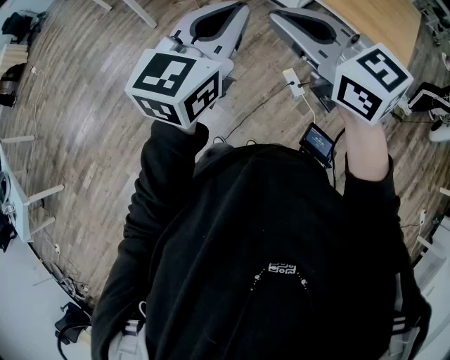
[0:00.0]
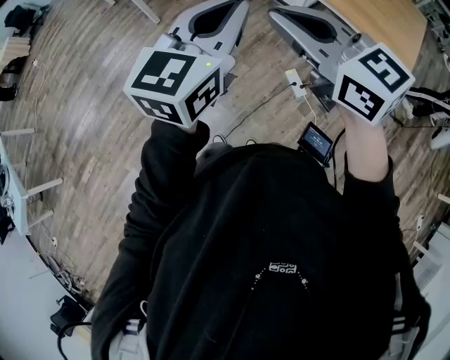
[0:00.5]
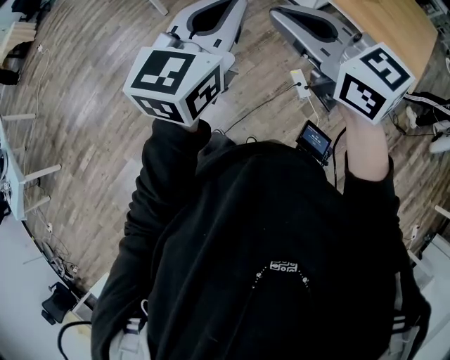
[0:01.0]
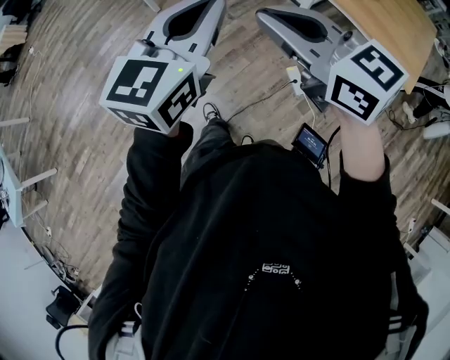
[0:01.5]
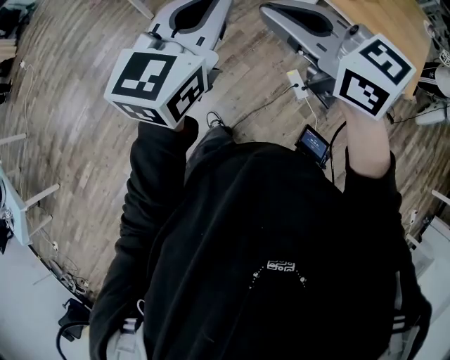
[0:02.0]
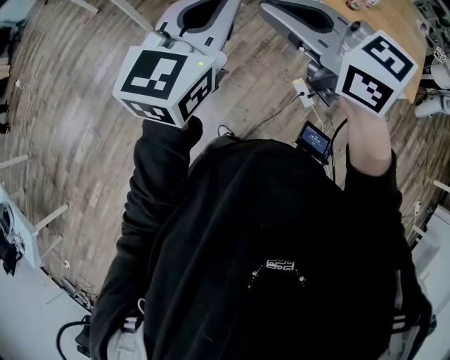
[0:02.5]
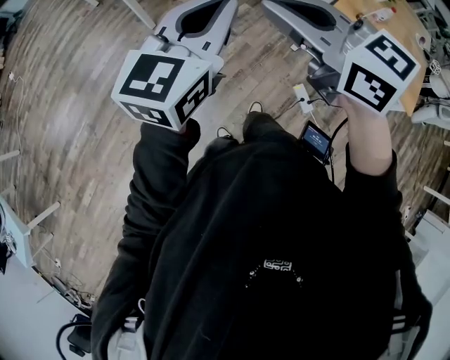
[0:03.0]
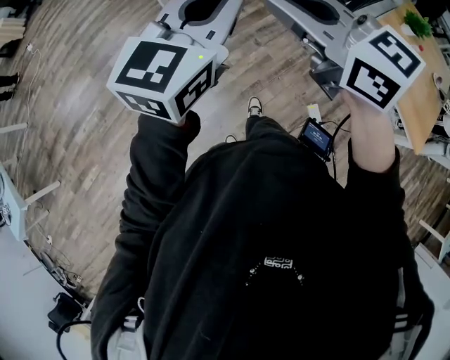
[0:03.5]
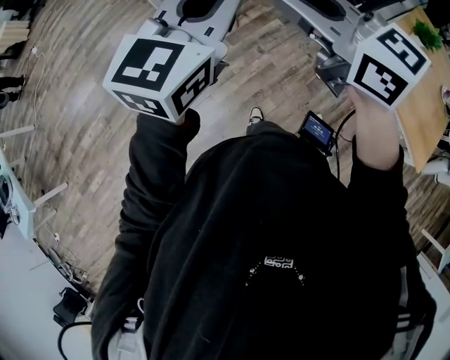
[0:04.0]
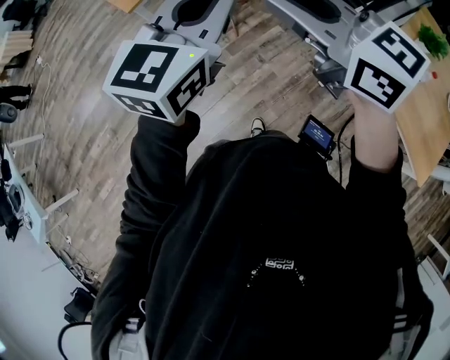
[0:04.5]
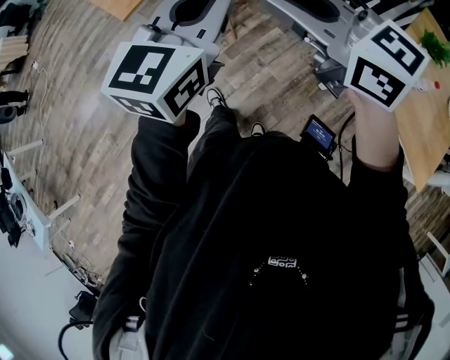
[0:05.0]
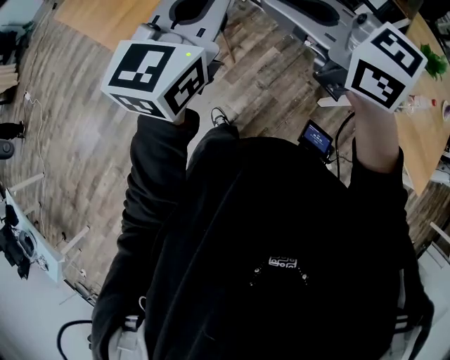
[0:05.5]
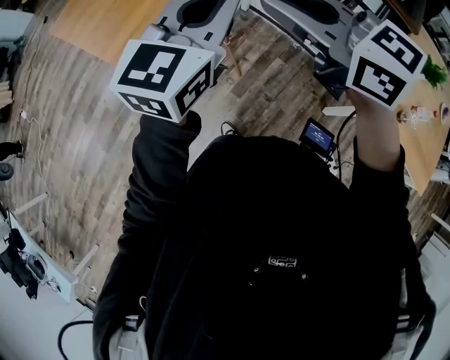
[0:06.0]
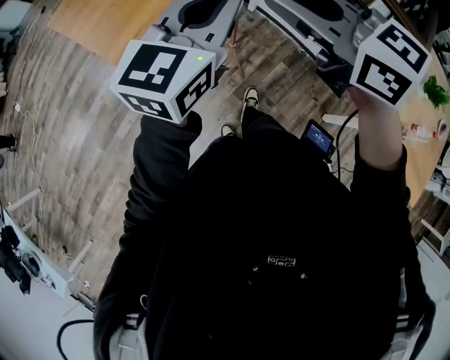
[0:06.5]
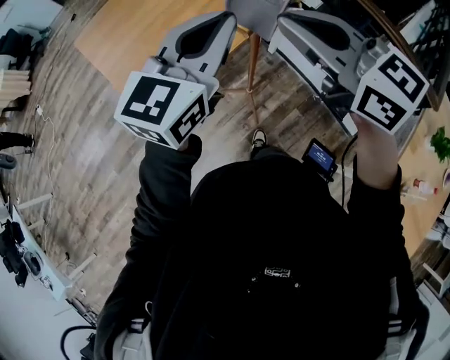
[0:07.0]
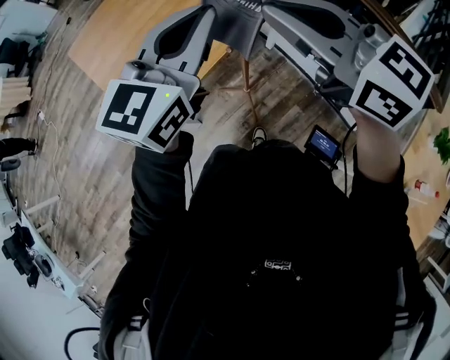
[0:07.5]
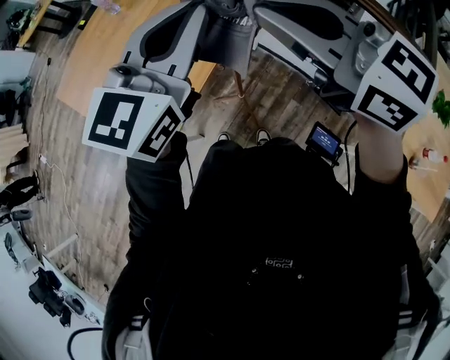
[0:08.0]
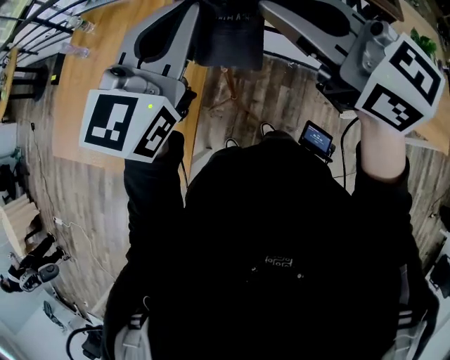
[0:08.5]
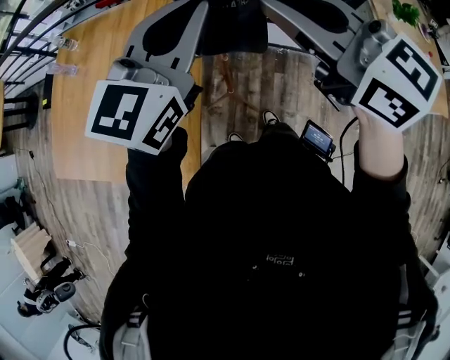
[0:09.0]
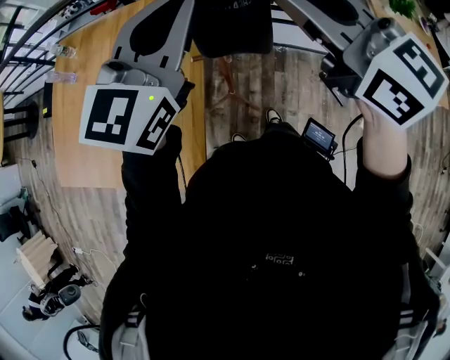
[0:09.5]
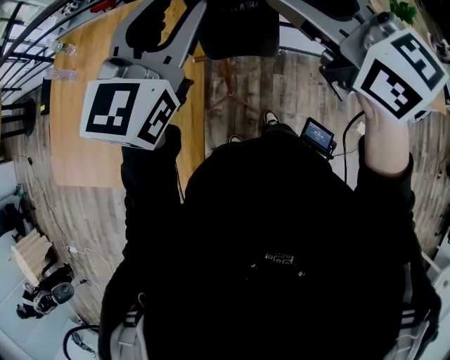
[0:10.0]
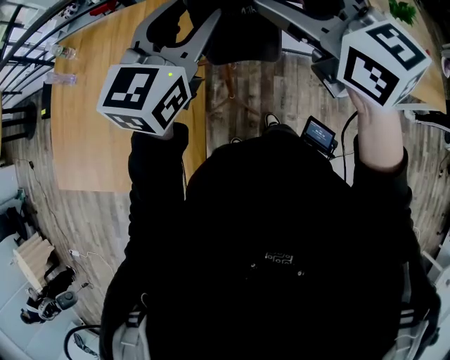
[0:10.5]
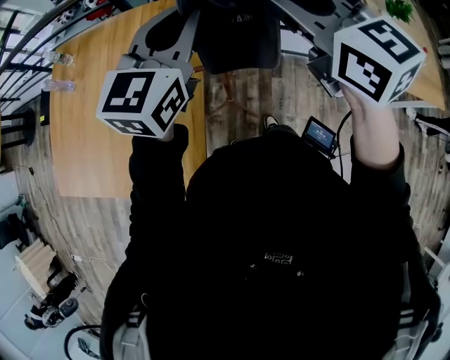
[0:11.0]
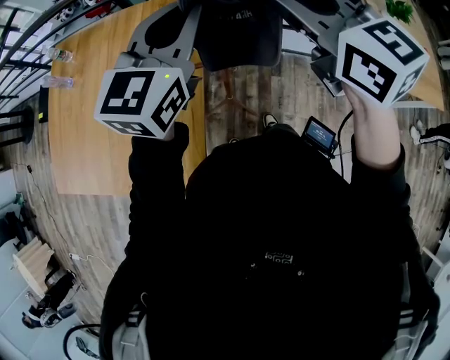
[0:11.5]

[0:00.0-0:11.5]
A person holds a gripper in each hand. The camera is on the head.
0:00.0 to 0:02.0: The left gripper moves forward and to the left, some 15 cm; the right gripper goes about 15 cm forward.
0:02.0 to 0:04.0: The grippers both shift forward by roughly 30 cm.
0:04.0 to 0:06.0: Both grippers move forward, roughly 40 cm.
0:06.0 to 0:07.5: Both grippers travel together forward, roughly 25 cm.
0:07.5 to 0:09.5: The right gripper changes its angle by roughly 50 degrees, while the left gripper turns by roughly 40 degrees.
0:09.5 to 0:11.5: The left gripper changes place by roughly 5 cm, and opens and closes again. The right gripper opens, then closes once more.

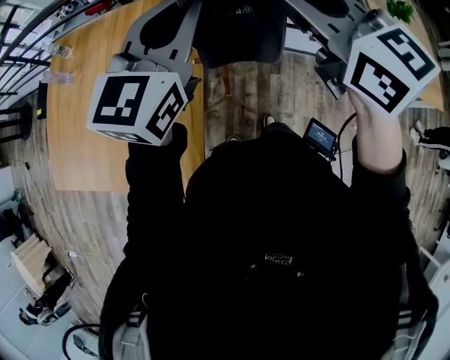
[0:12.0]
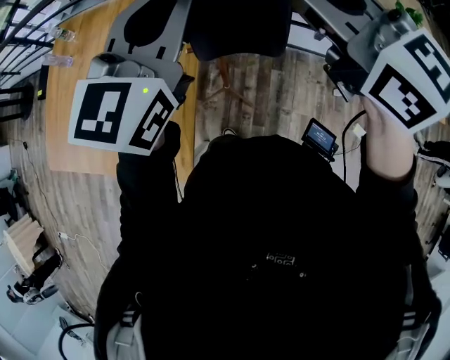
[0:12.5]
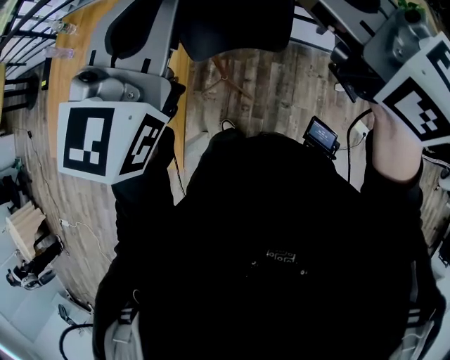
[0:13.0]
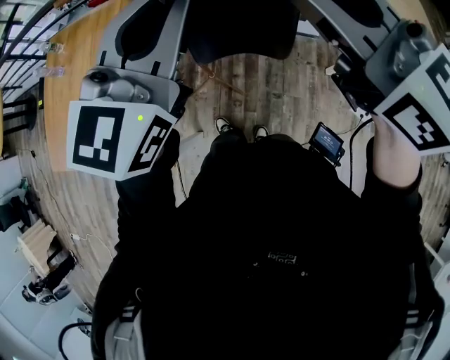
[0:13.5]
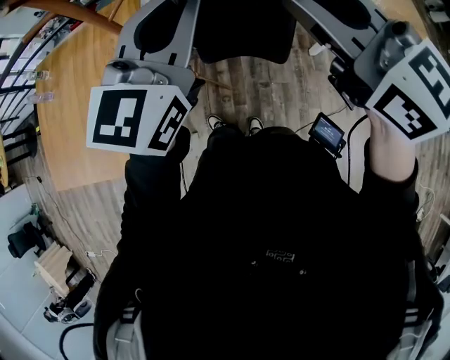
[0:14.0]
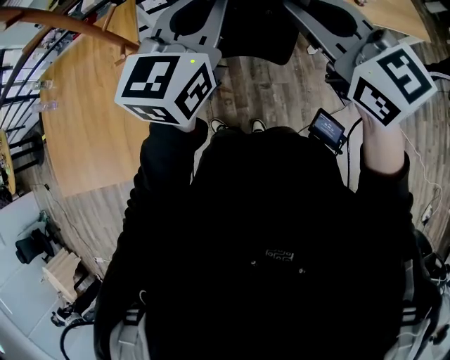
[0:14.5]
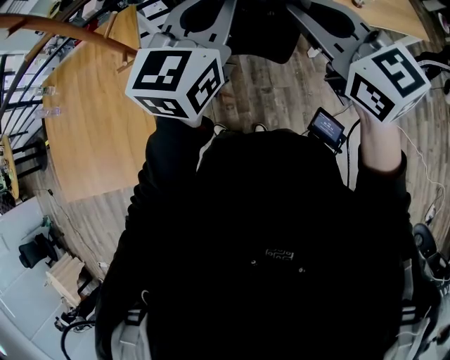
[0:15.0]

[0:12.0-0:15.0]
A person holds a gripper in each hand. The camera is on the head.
0:12.0 to 0:13.5: Both grippers move to the right and backward, about 15 cm.
0:13.5 to 0:15.0: The grippers both shift to the right and downward by some 15 cm.

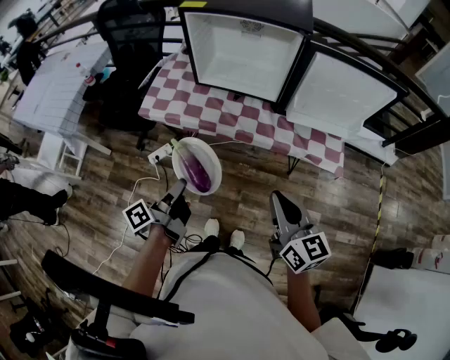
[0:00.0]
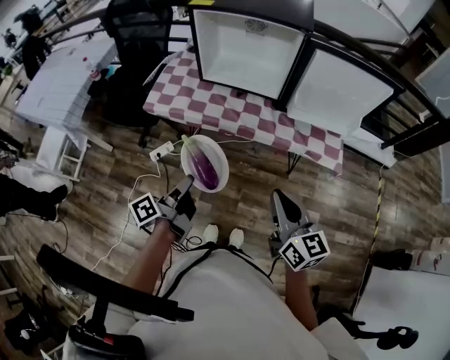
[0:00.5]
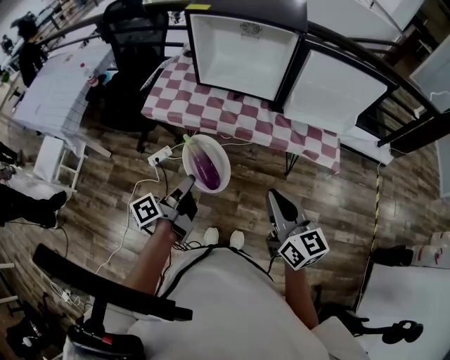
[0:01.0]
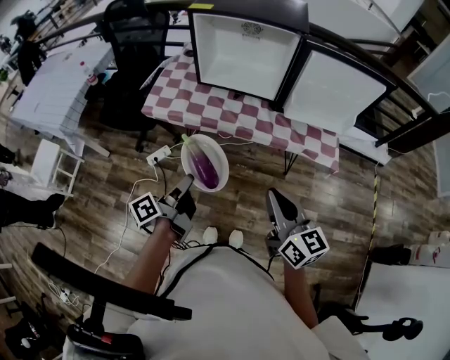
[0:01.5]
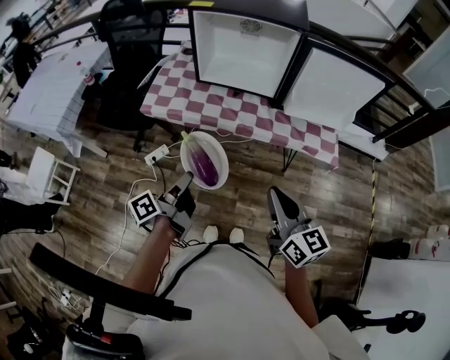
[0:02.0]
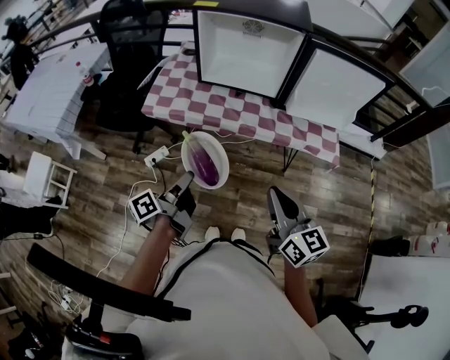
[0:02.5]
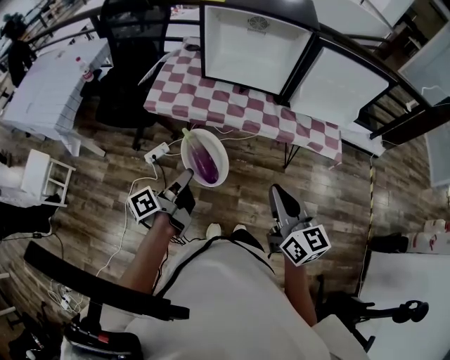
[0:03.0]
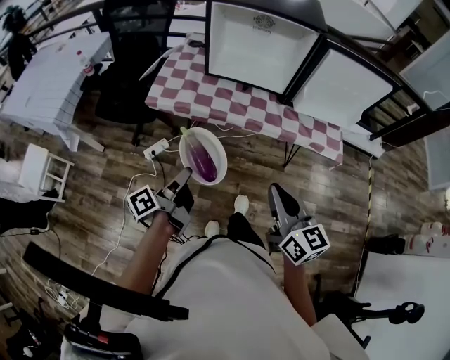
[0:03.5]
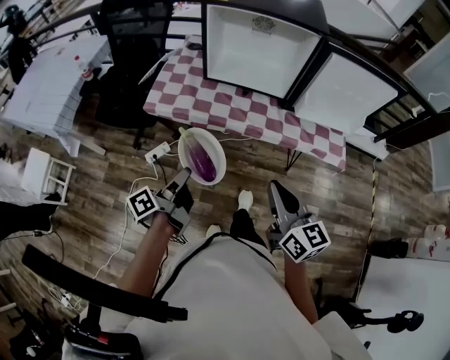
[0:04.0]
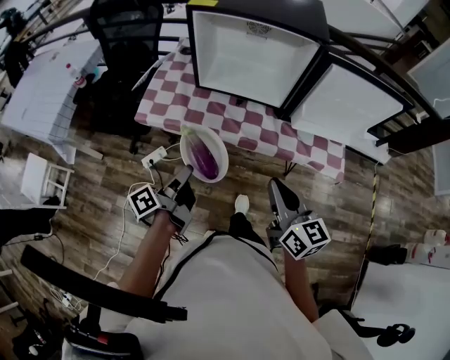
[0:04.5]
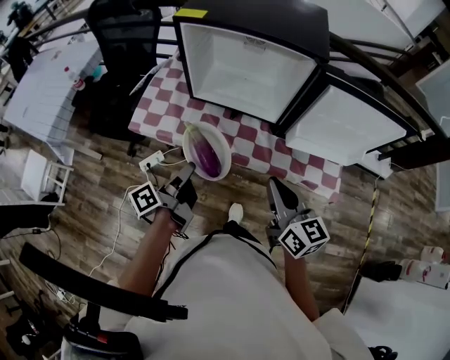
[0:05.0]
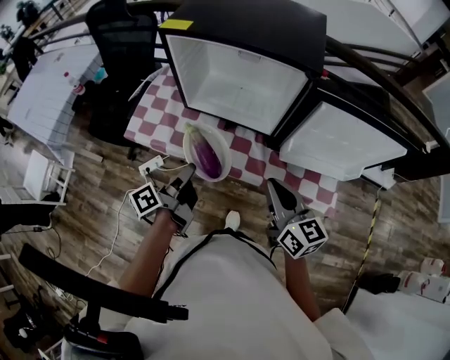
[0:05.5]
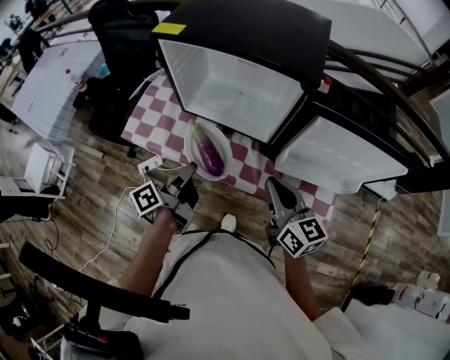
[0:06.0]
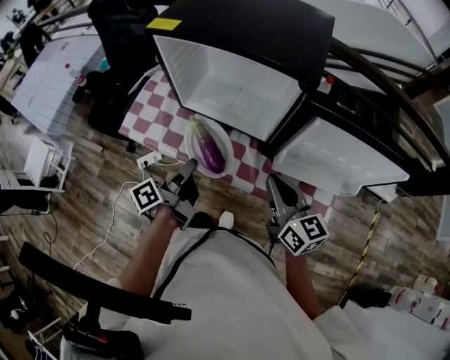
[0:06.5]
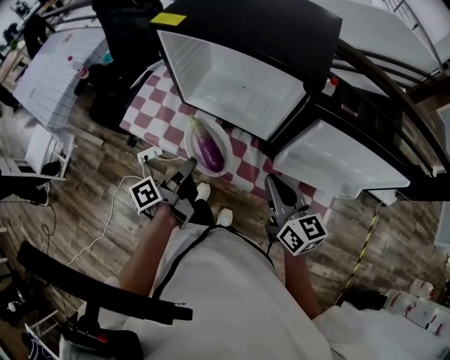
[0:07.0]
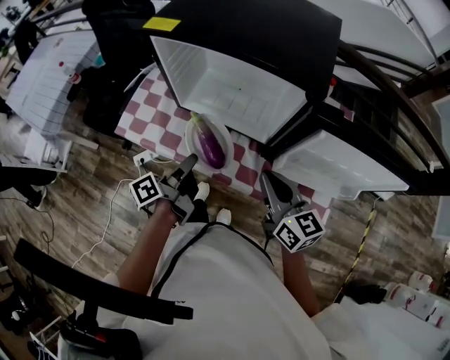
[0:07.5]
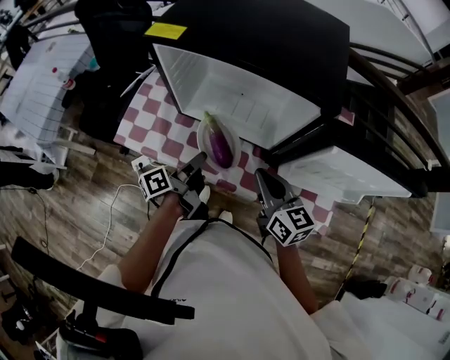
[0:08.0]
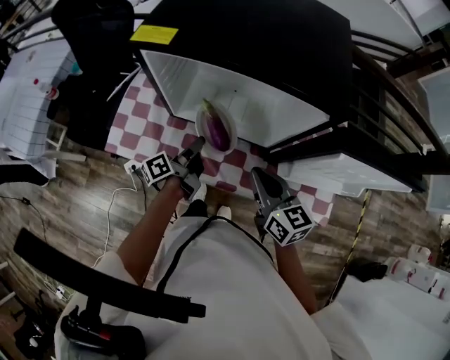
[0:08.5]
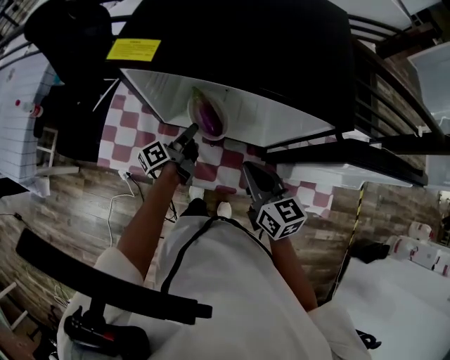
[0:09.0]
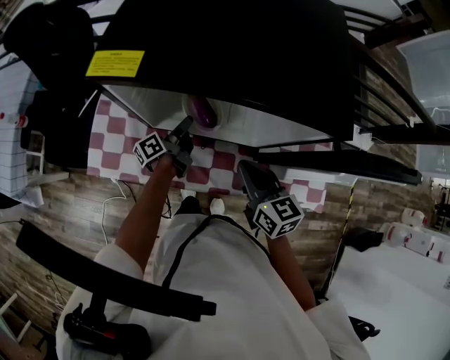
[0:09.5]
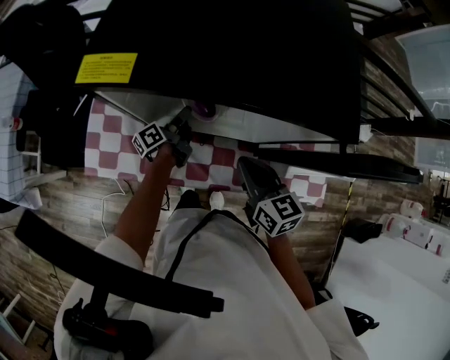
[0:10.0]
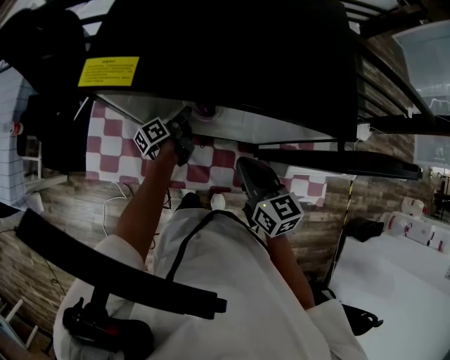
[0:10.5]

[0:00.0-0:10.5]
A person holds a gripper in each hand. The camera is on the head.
0:00.0 to 0:02.0: The right gripper changes place by about 5 cm.
0:02.0 to 0:04.0: The right gripper changes place by about 5 cm.
0:04.0 to 0:06.5: The right gripper changes place by about 35 cm.
0:06.5 to 0:08.5: The right gripper ends up about 10 cm from where it was.
0:08.5 to 0:10.5: The right gripper moves approximately 10 cm.

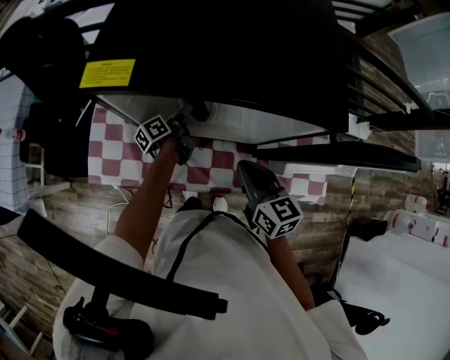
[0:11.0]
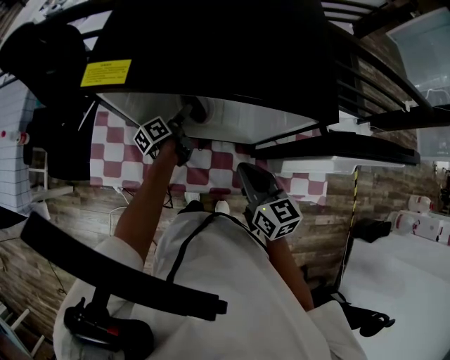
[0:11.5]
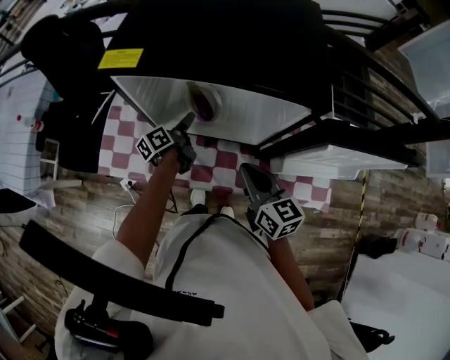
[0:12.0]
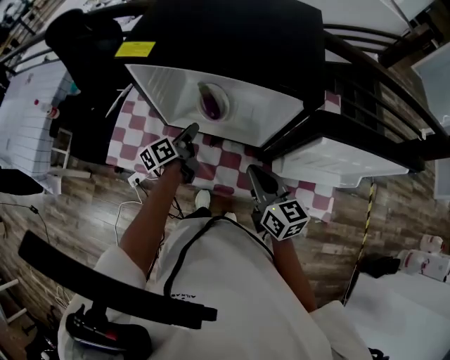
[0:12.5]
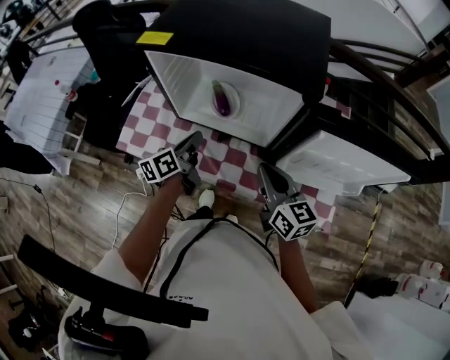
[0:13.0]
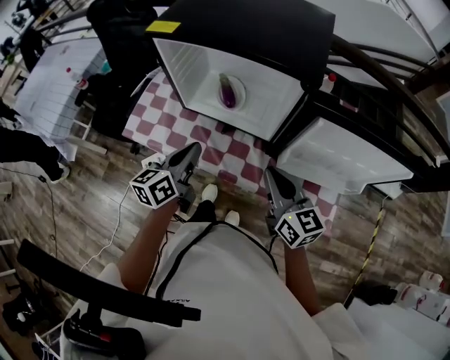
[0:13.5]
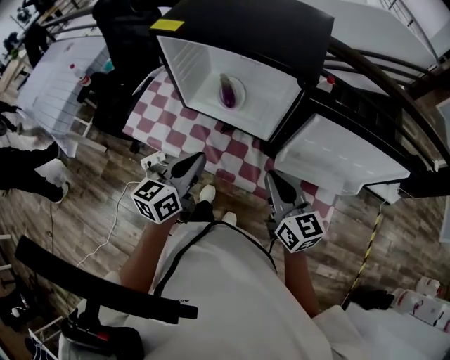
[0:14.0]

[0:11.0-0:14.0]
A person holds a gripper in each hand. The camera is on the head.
0:11.0 to 0:12.5: The right gripper moves roughly 5 cm.
0:12.5 to 0:14.0: The right gripper shifts by approximately 10 cm.
